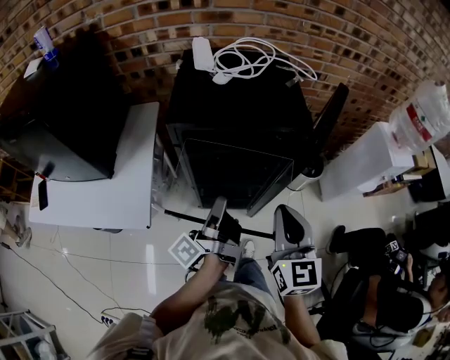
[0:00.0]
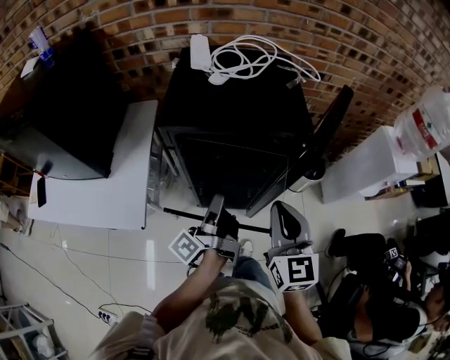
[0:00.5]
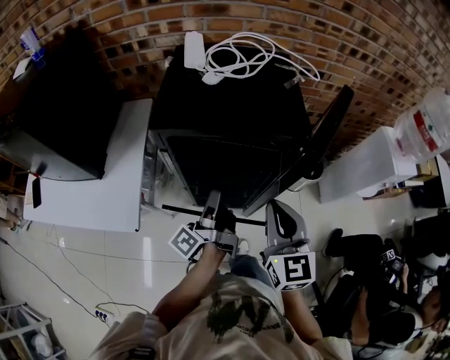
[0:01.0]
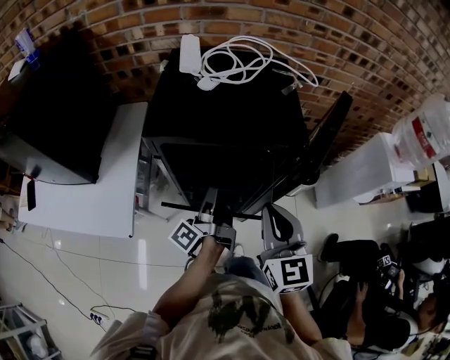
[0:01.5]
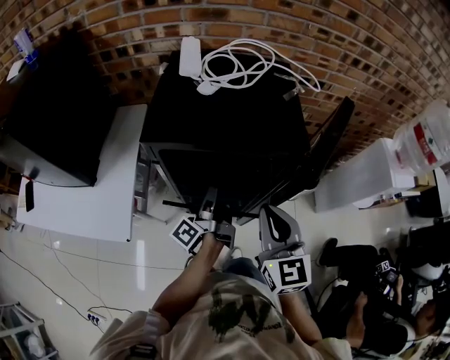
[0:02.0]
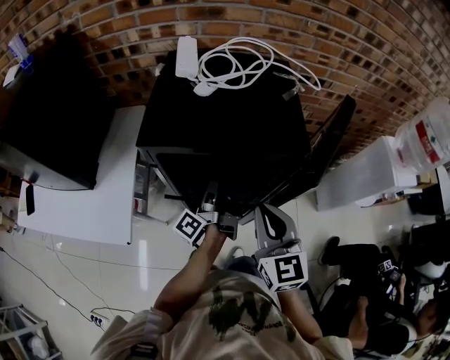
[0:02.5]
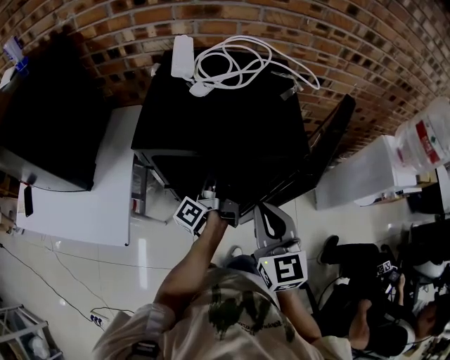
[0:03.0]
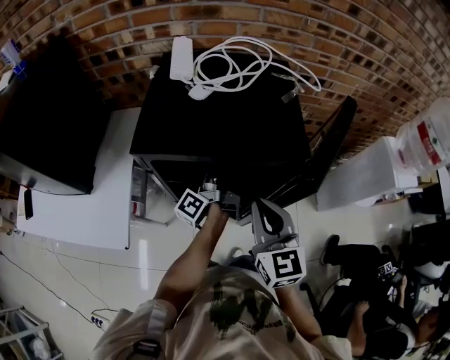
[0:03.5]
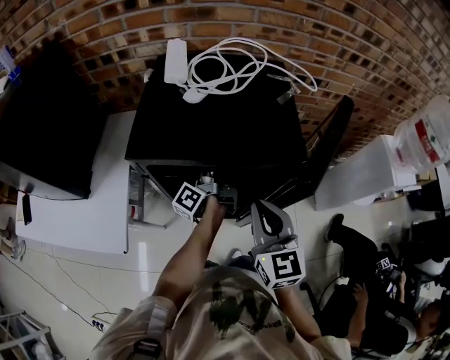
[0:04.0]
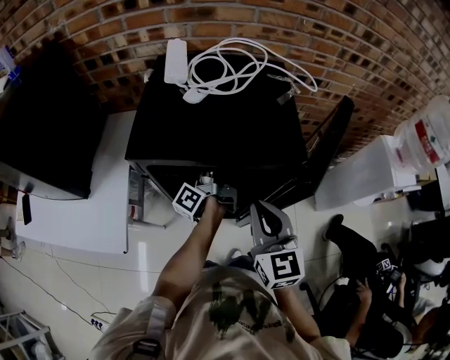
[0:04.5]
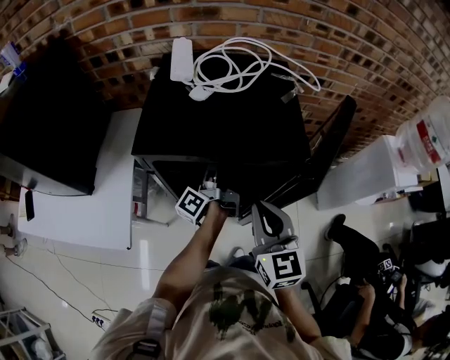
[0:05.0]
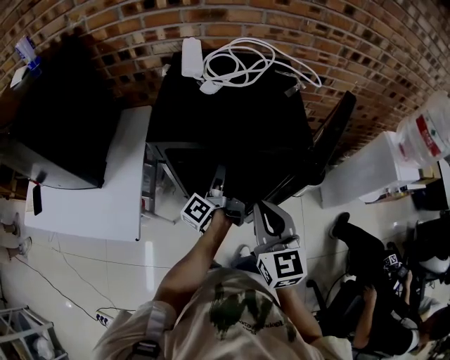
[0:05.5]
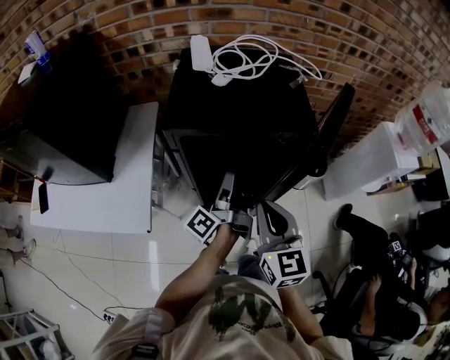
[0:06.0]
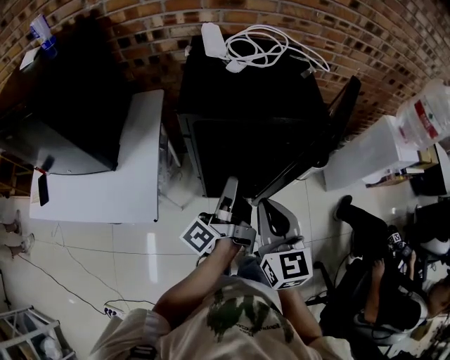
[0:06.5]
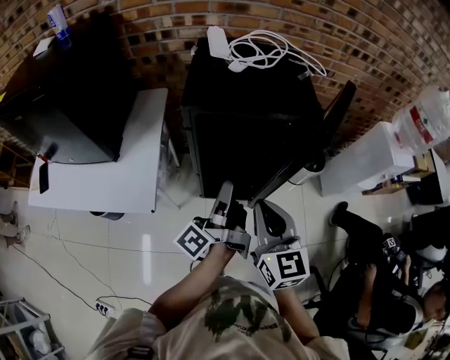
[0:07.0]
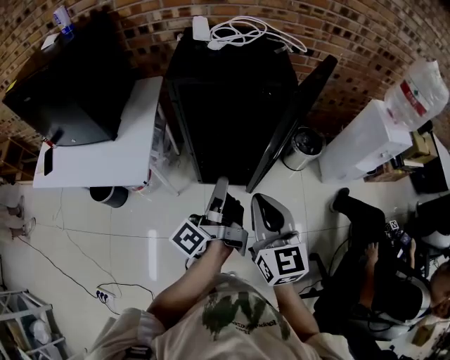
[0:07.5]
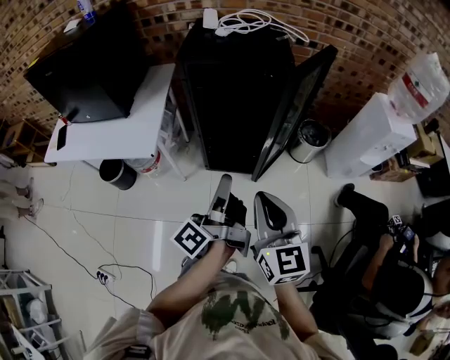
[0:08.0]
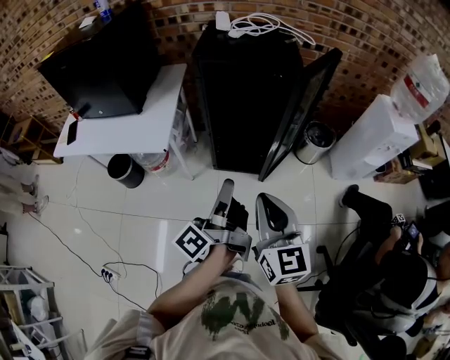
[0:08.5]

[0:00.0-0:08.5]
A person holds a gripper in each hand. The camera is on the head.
0:00.0 to 0:02.0: The right gripper moves approximately 10 cm.
0:04.0 to 0:06.5: The right gripper shifts by approximately 15 cm.
0:06.5 to 0:08.5: The right gripper shifts by roughly 25 cm.

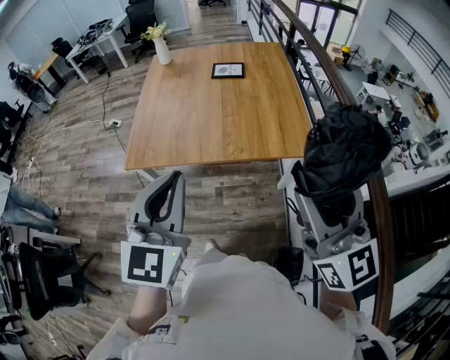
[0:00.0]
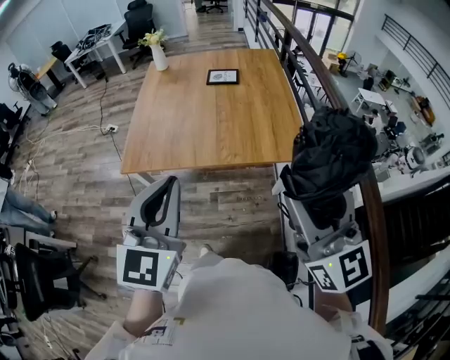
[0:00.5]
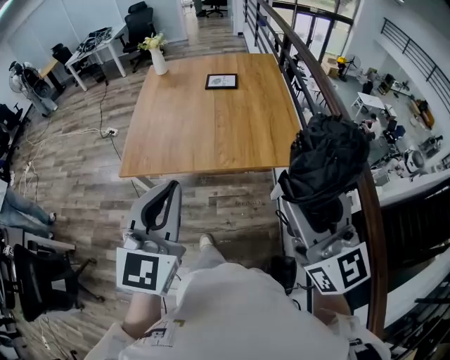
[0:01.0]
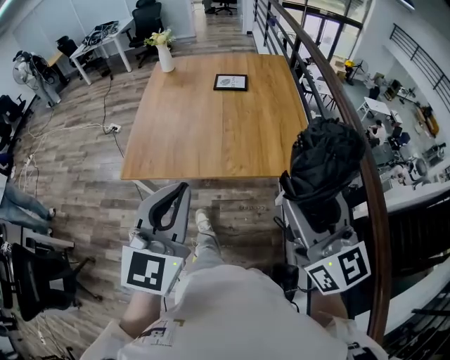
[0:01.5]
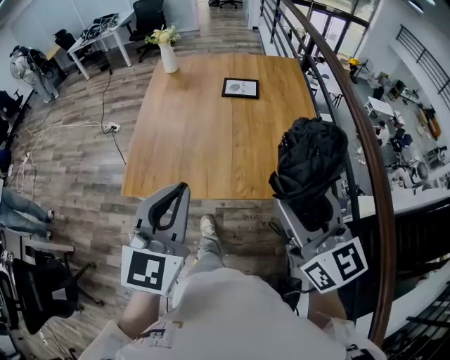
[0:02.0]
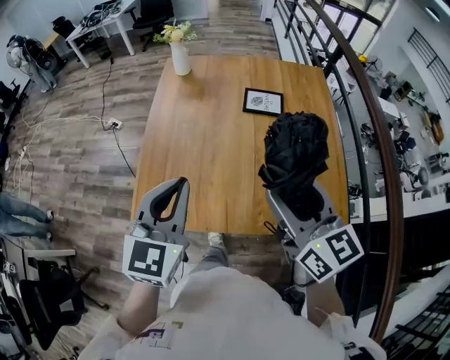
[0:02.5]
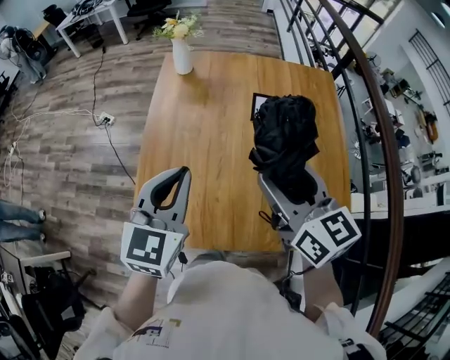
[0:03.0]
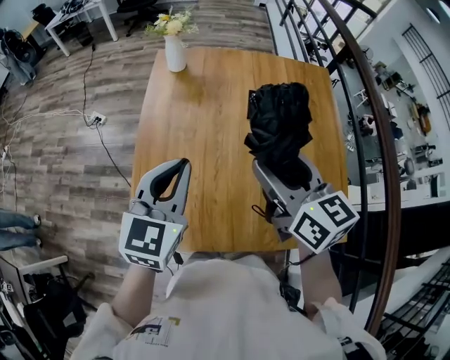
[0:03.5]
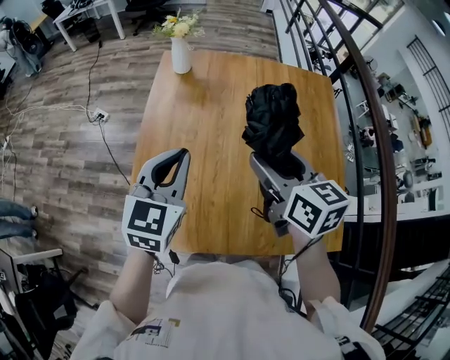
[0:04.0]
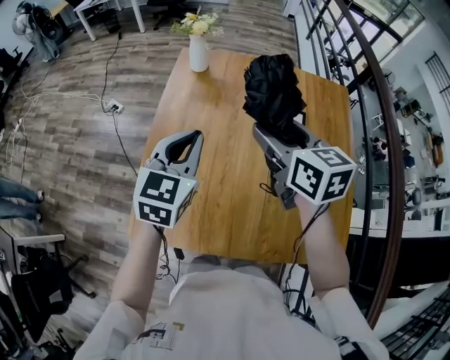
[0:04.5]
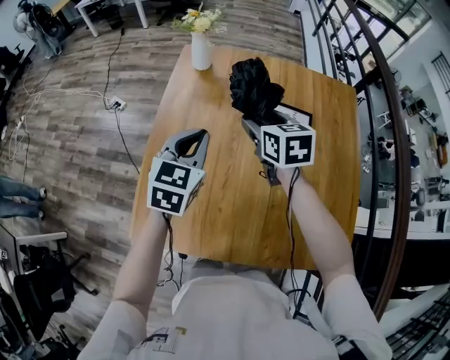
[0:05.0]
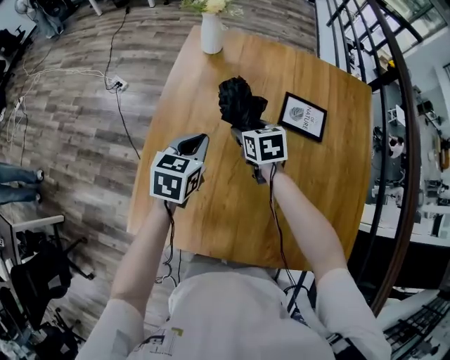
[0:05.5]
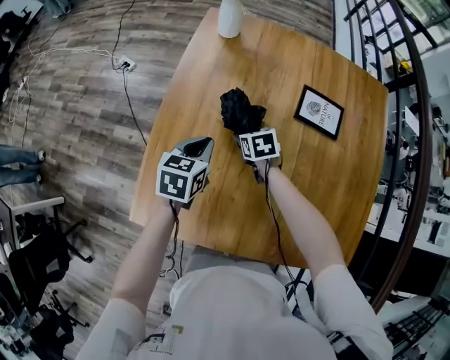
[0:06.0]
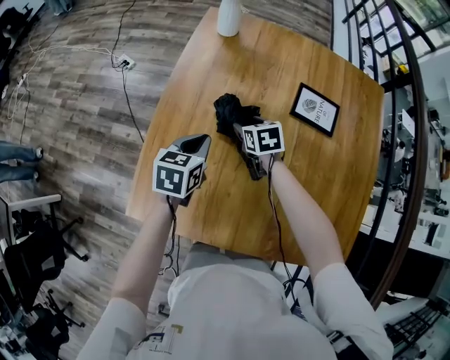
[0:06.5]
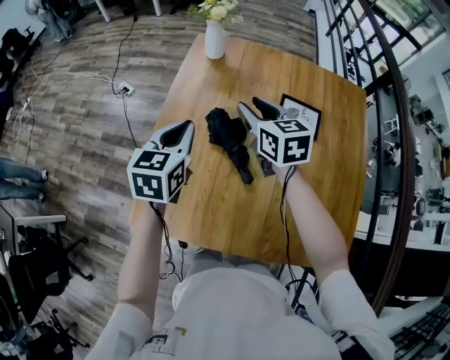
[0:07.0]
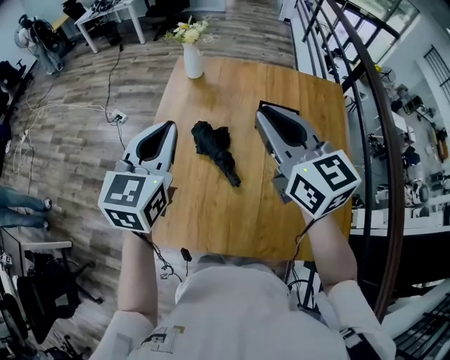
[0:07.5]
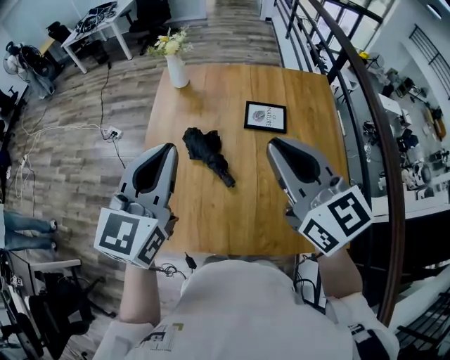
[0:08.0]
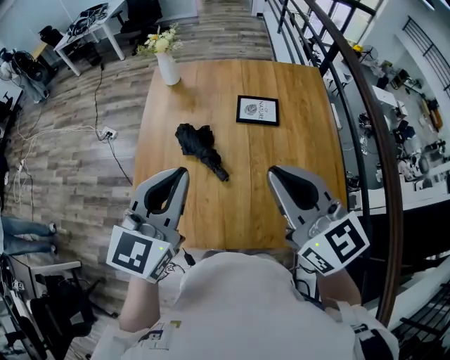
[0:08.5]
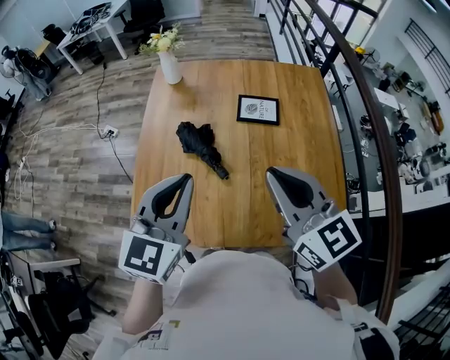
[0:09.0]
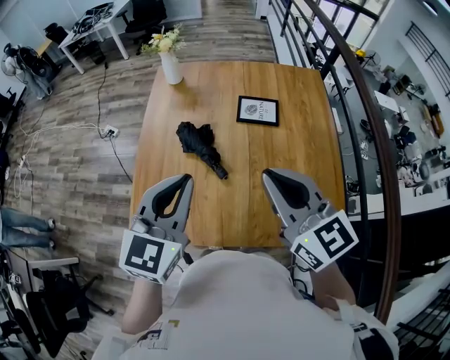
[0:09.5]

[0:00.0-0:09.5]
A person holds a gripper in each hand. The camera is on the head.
0:00.0 to 0:02.0: Both grippers move forward, some 20 cm.
0:02.0 to 0:04.0: The two grippers travel together, forward, some 50 cm. The right gripper changes its angle by approximately 30 degrees.
0:04.0 to 0:05.5: Both grippers move downward and forward, roughly 30 cm. The left gripper swivels roughly 30 degrees, while the right gripper rotates roughly 30 degrees.
0:05.5 to 0:07.5: Both grippers travel together upward and backward, some 35 cm. The right gripper points its fingers some 40 degrees further upward, and closes its fingers. Meanwhile the left gripper rotates some 30 degrees.
0:07.5 to 0:09.5: The left gripper moves backward and to the right, some 15 cm, while the right gripper is displaced backward by about 15 cm.

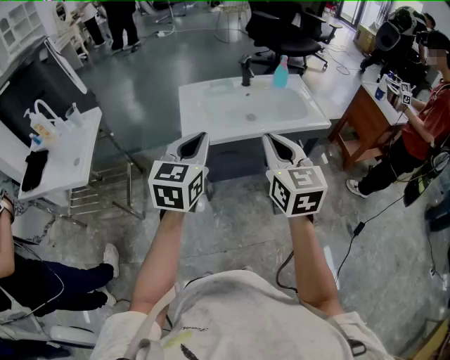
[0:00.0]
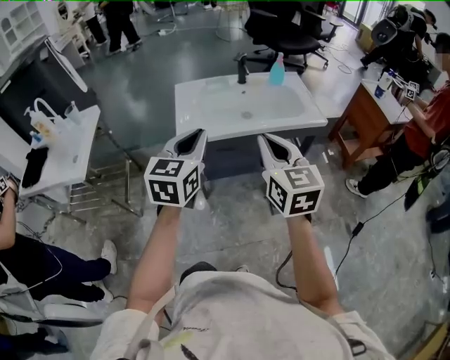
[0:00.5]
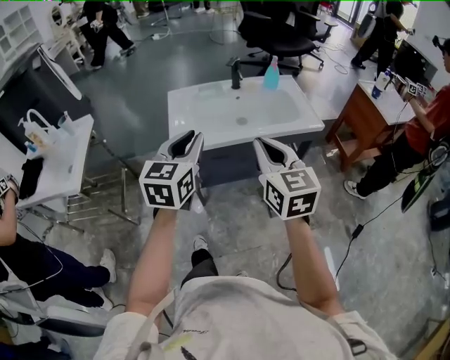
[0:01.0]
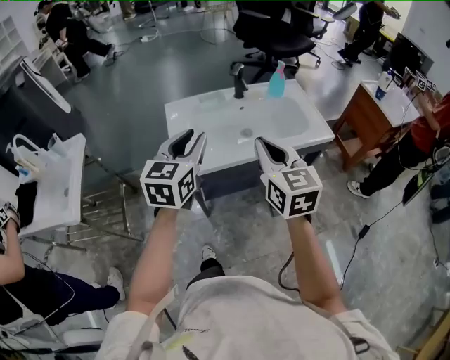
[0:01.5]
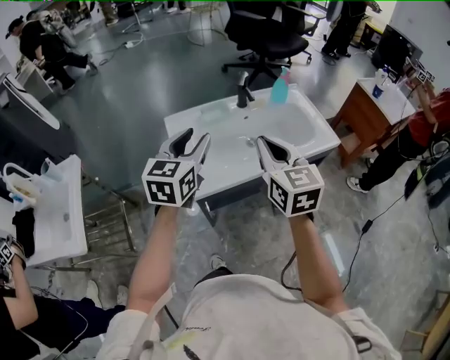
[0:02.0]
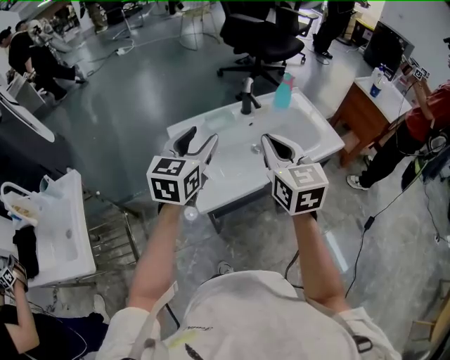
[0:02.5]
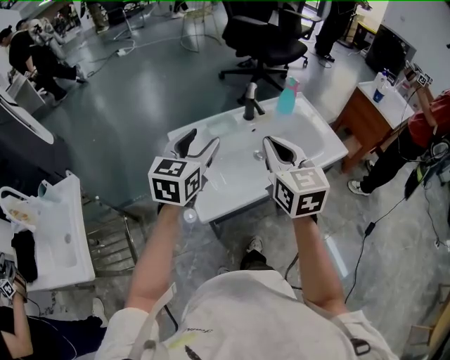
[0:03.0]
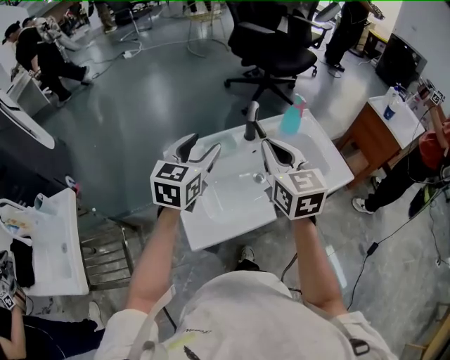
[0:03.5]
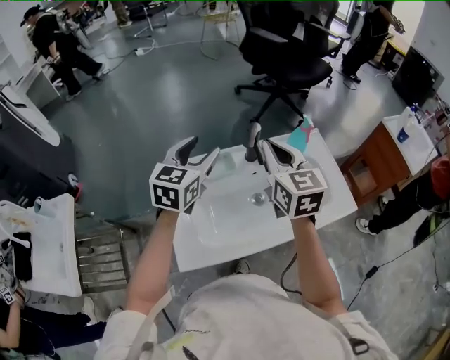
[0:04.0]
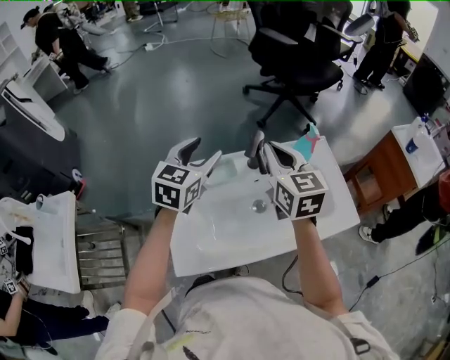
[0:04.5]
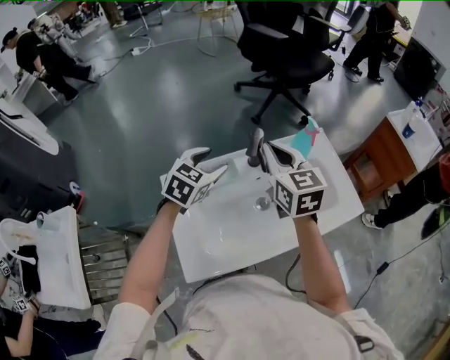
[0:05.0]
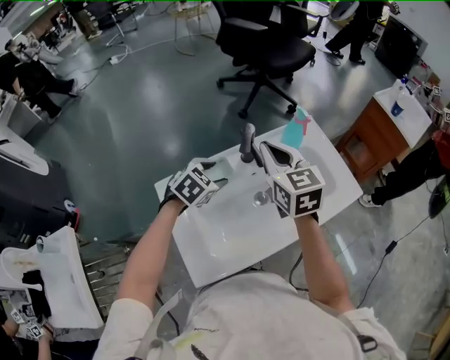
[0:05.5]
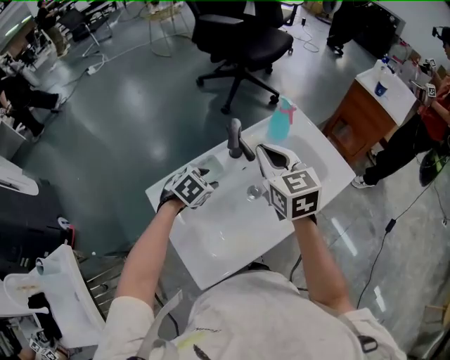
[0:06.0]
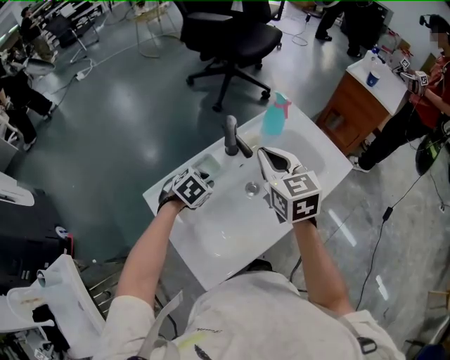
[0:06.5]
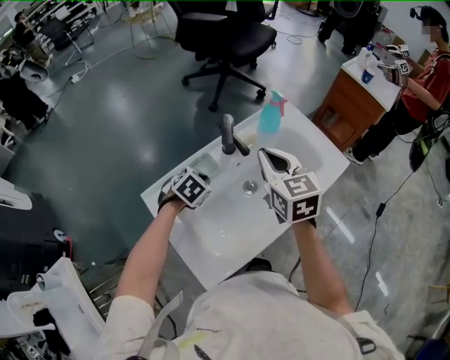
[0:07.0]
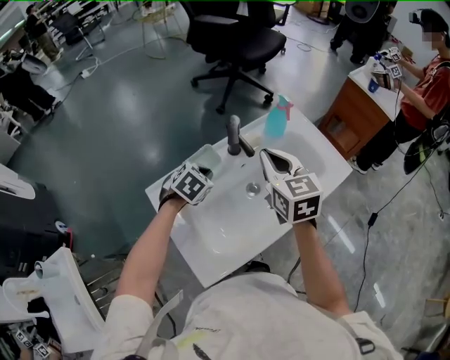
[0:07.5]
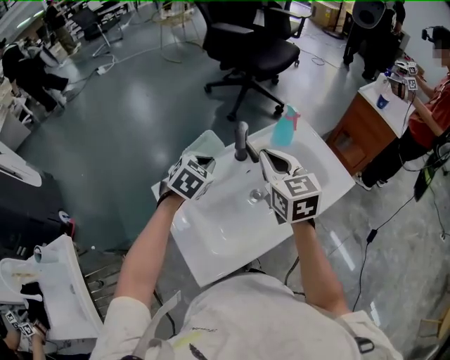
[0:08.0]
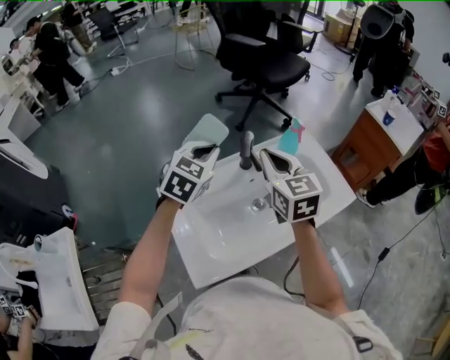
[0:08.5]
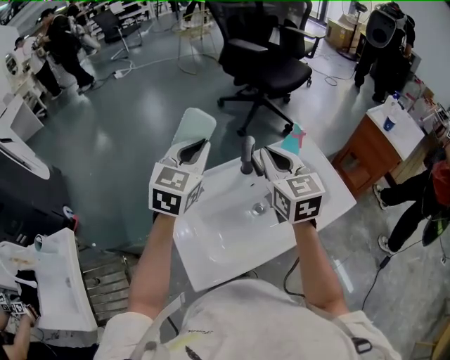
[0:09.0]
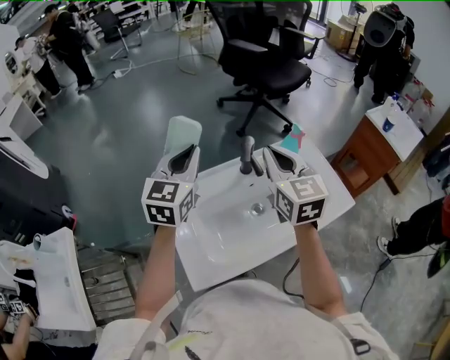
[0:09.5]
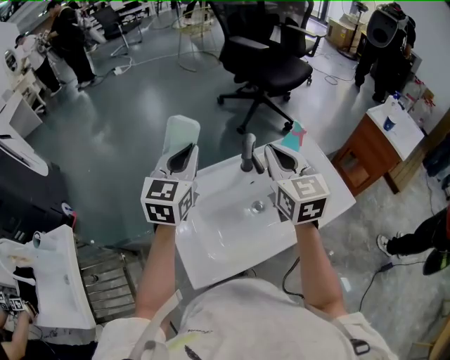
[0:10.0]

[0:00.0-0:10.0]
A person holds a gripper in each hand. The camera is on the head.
0:00.0 to 0:02.0: The two grippers go roughly 25 cm forward. The left gripper opens.
0:02.0 to 0:04.0: The grippers both shift forward by some 25 cm.
0:04.0 to 0:06.0: The left gripper moves downward, about 20 cm, and tilts its fingers some 40 degrees downward, while the right gripper is displaced downward by some 5 cm.
0:06.0 to 0:08.0: The left gripper goes about 10 cm upward, and closes up.
0:08.0 to 0:10.0: The right gripper heads upward, covering roughly 5 cm; the left gripper is displaced upward by approximately 15 cm, and points its fingers roughly 40 degrees further upward.
